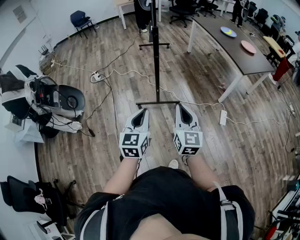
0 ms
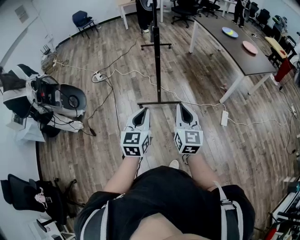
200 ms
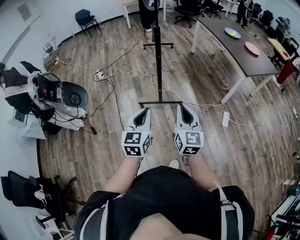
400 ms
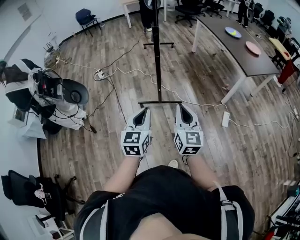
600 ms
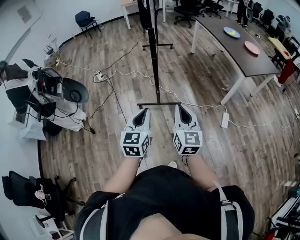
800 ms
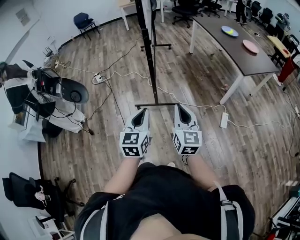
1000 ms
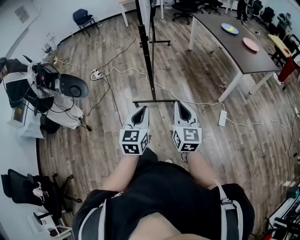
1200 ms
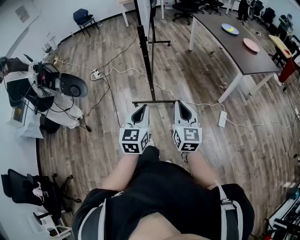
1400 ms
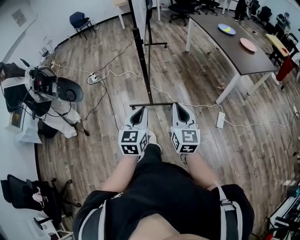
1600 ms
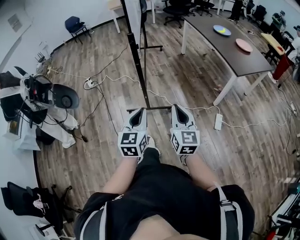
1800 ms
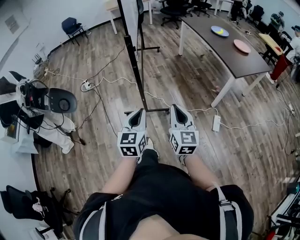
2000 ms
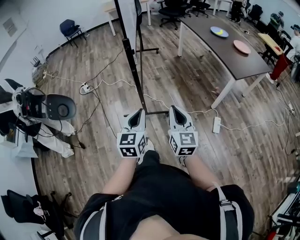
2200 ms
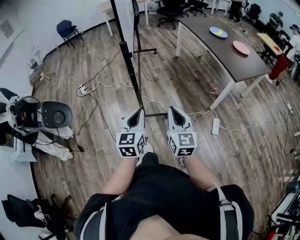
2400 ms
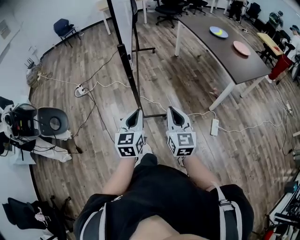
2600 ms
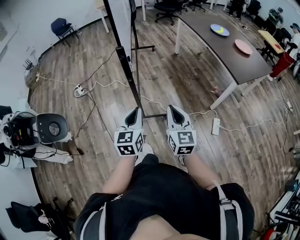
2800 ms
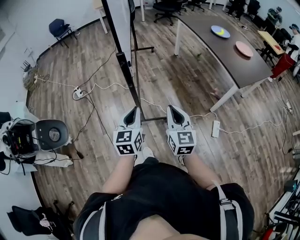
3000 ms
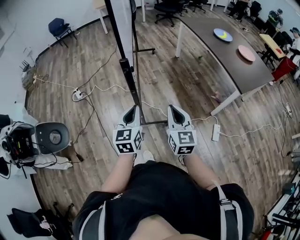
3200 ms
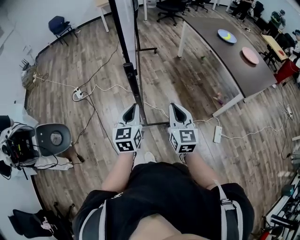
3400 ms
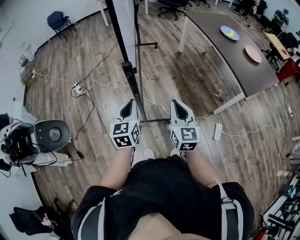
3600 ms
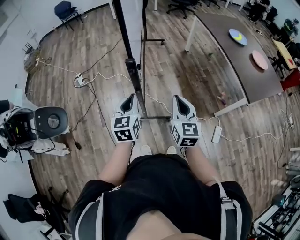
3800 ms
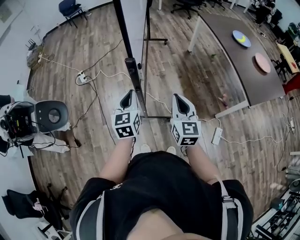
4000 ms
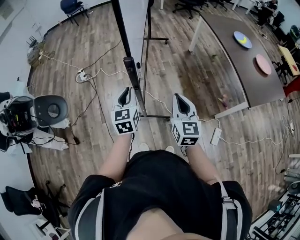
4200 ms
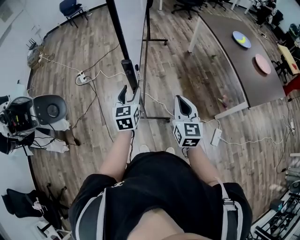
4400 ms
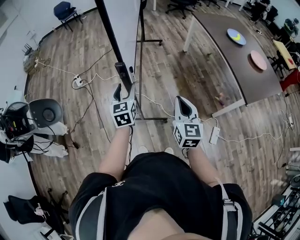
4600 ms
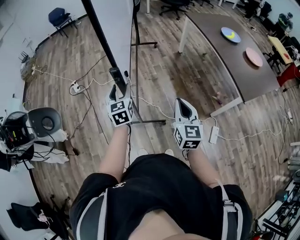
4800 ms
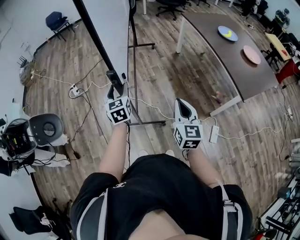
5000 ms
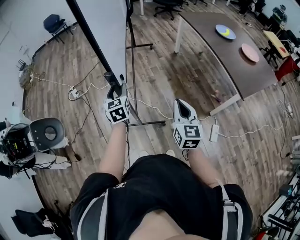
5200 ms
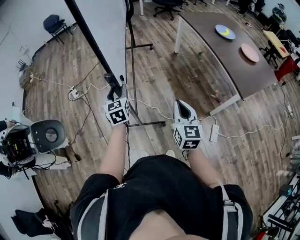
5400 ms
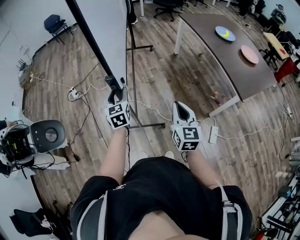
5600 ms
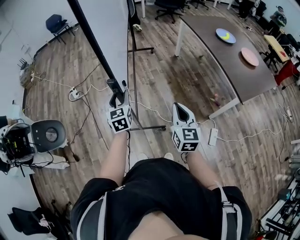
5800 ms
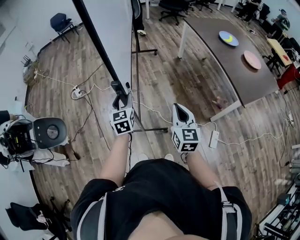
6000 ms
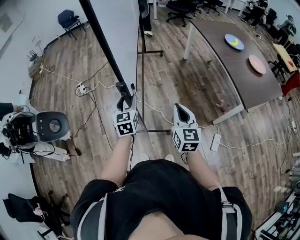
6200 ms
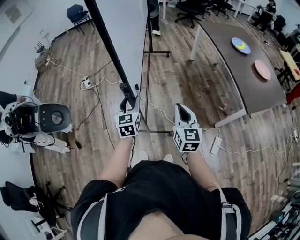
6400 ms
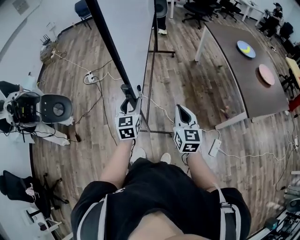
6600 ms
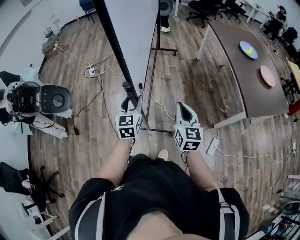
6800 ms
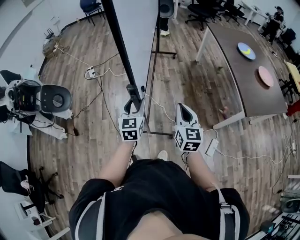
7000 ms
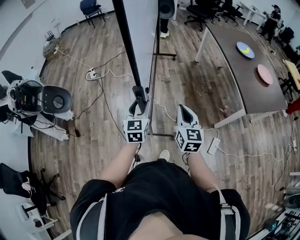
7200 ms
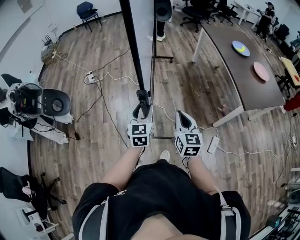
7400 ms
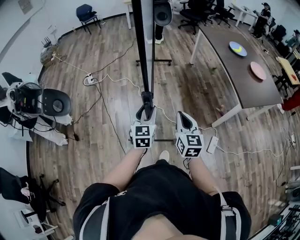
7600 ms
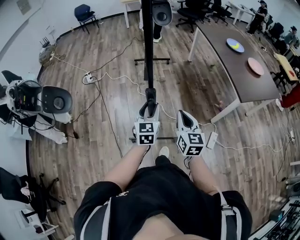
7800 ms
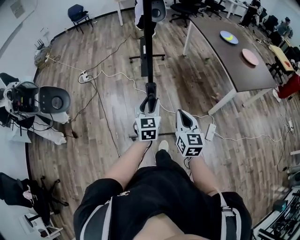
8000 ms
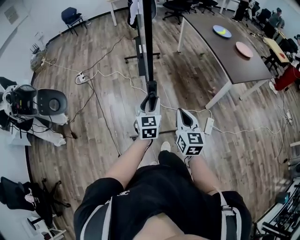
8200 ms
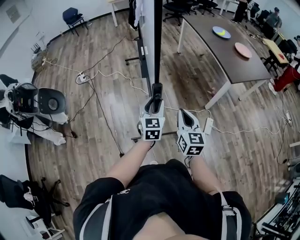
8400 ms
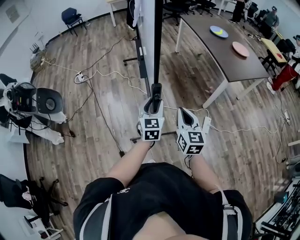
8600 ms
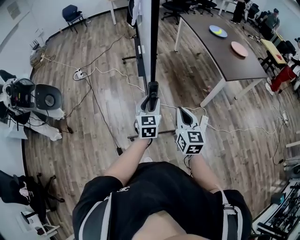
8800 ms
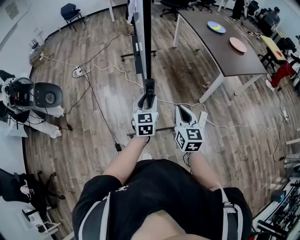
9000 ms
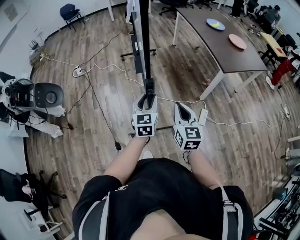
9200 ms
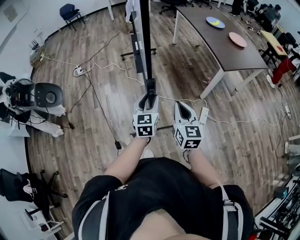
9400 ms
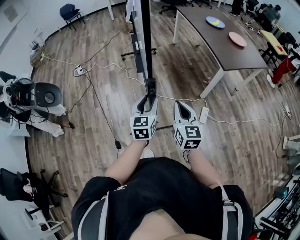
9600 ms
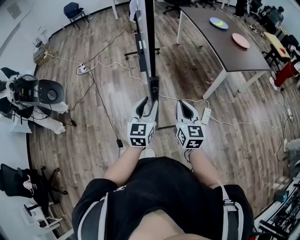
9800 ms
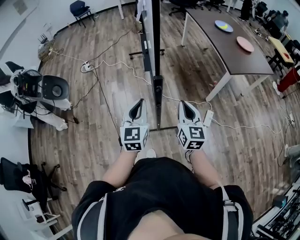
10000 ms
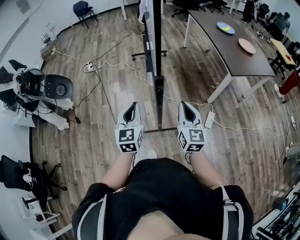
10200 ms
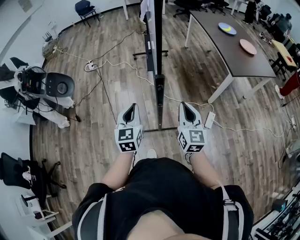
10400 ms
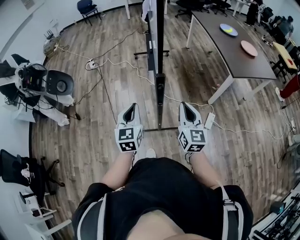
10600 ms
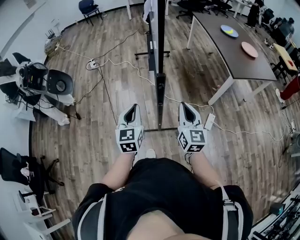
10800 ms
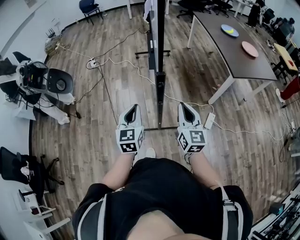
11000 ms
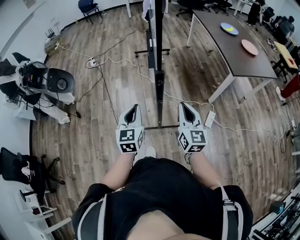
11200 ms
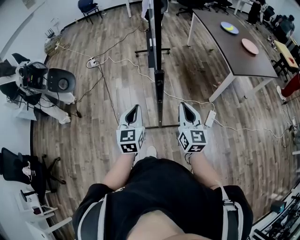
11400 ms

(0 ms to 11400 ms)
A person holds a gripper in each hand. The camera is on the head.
0 ms - 1400 ms: The grippers both shift to the right by roughly 10 cm.
1400 ms - 2800 ms: Both grippers move forward, approximately 20 cm.
2800 ms - 4200 ms: Both grippers travel together forward, roughly 20 cm.
4200 ms - 5600 ms: The left gripper is displaced forward by roughly 10 cm, and opens its fingers, while the right gripper heads to the right, covering approximately 5 cm.
5600 ms - 7200 ms: The left gripper heads backward, covering about 20 cm. Meanwhile the right gripper shifts approximately 10 cm backward.
7200 ms - 8600 ms: The left gripper shifts some 20 cm backward and to the right. Meanwhile the right gripper heads backward, covering about 20 cm.
8600 ms - 10000 ms: The right gripper shifts by roughly 5 cm. The left gripper goes about 15 cm backward and upward, and closes its fingers.
10000 ms - 11400 ms: The left gripper ends up roughly 5 cm from where it was.

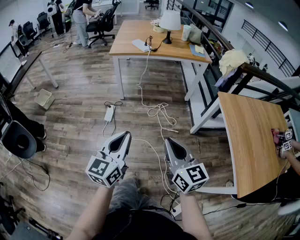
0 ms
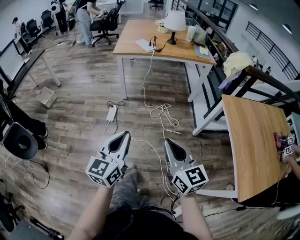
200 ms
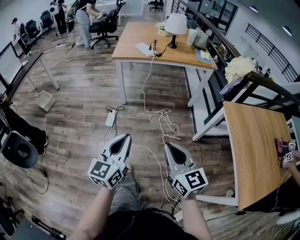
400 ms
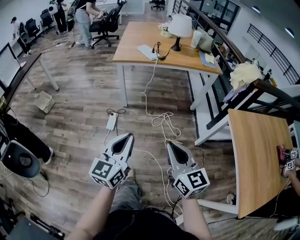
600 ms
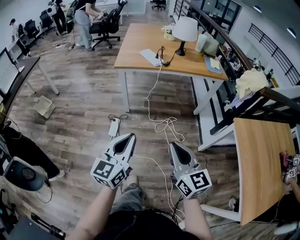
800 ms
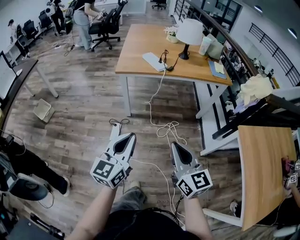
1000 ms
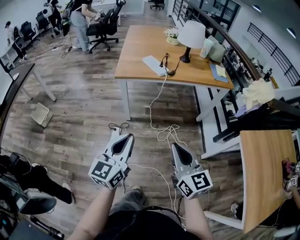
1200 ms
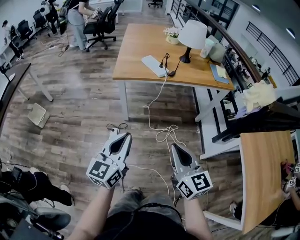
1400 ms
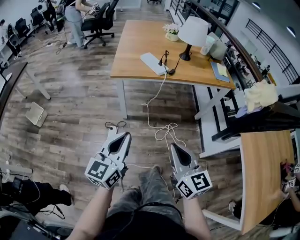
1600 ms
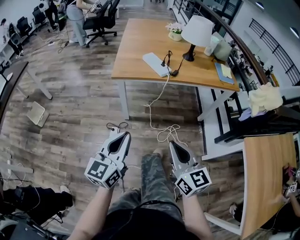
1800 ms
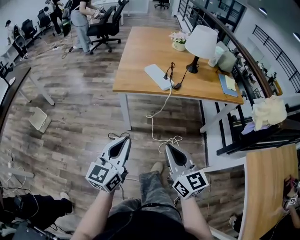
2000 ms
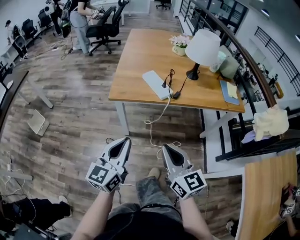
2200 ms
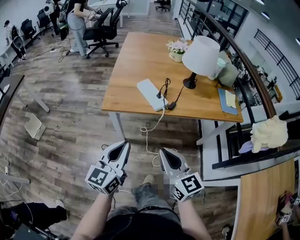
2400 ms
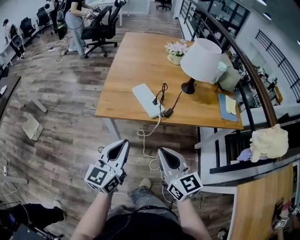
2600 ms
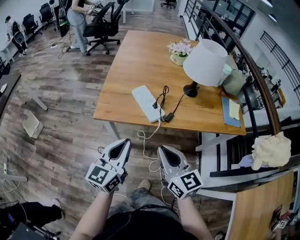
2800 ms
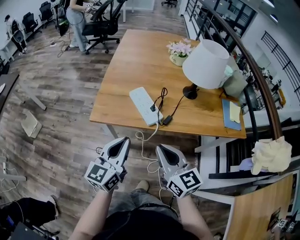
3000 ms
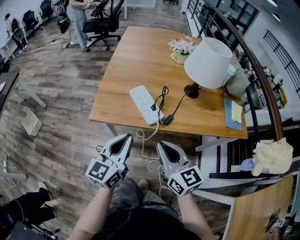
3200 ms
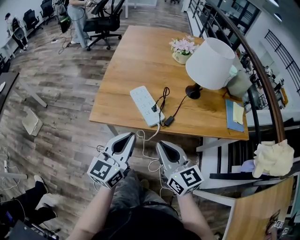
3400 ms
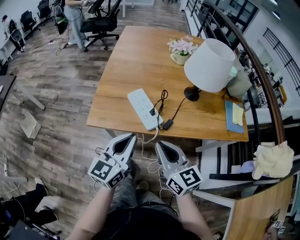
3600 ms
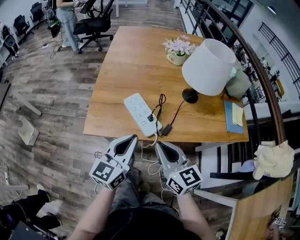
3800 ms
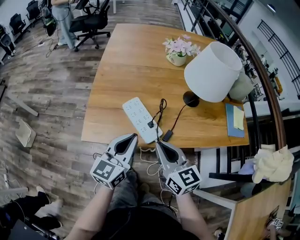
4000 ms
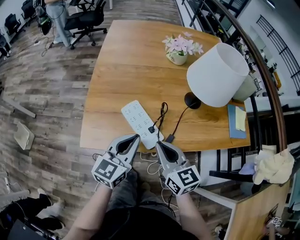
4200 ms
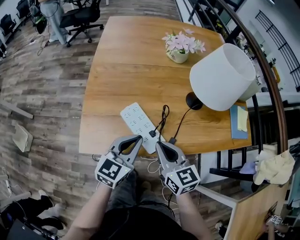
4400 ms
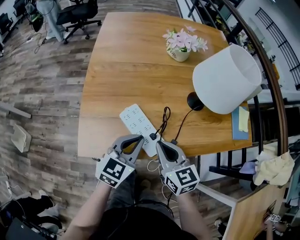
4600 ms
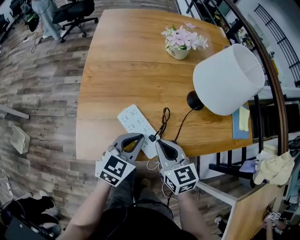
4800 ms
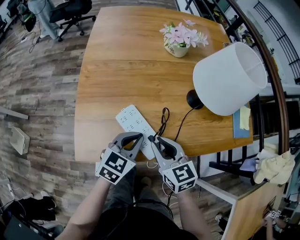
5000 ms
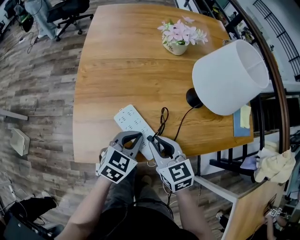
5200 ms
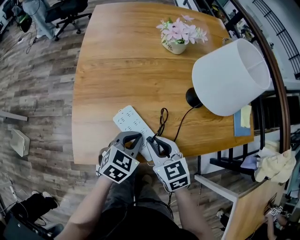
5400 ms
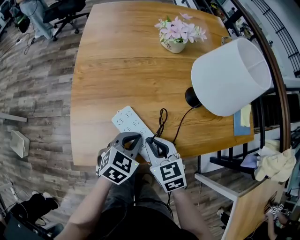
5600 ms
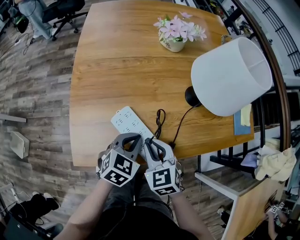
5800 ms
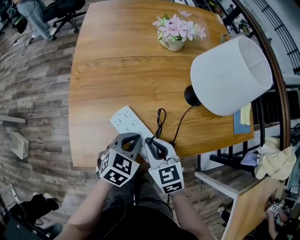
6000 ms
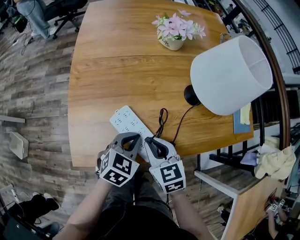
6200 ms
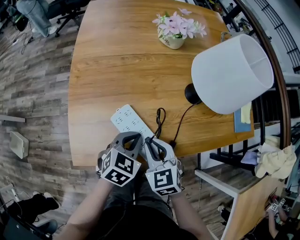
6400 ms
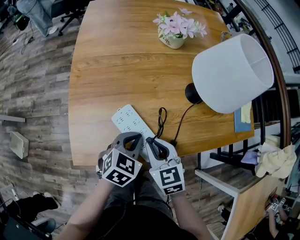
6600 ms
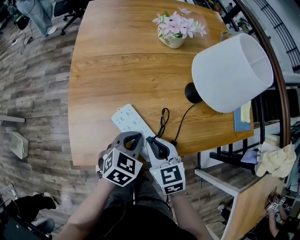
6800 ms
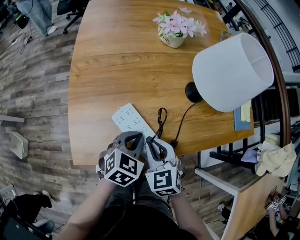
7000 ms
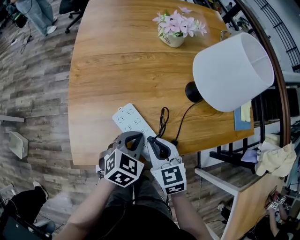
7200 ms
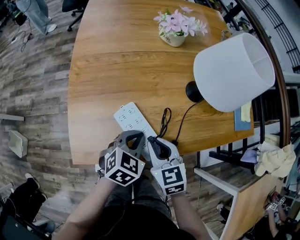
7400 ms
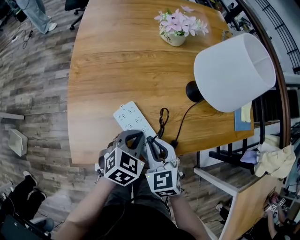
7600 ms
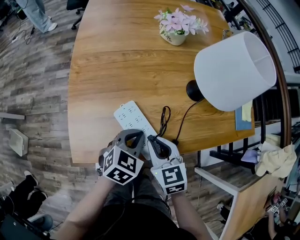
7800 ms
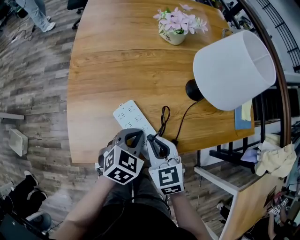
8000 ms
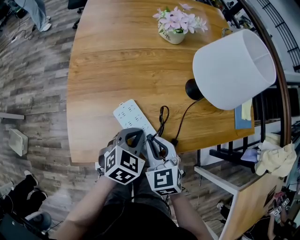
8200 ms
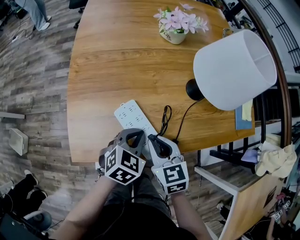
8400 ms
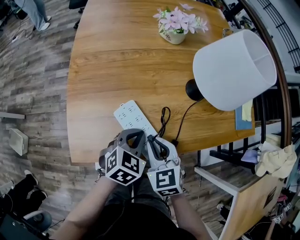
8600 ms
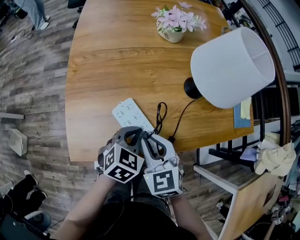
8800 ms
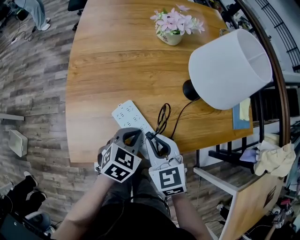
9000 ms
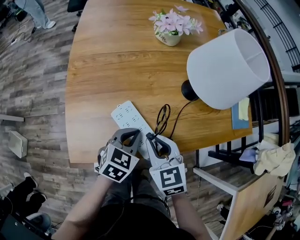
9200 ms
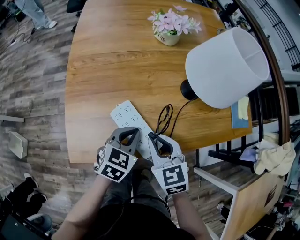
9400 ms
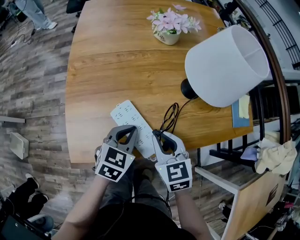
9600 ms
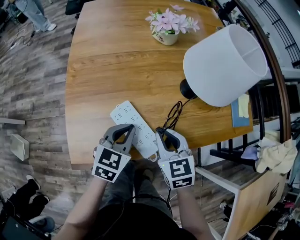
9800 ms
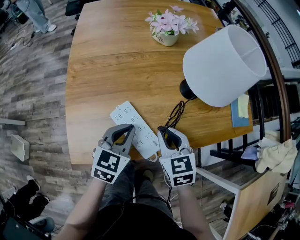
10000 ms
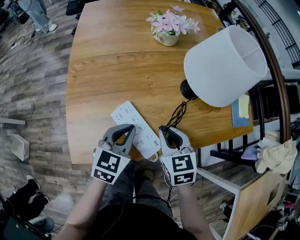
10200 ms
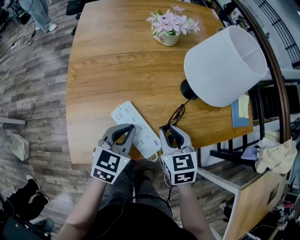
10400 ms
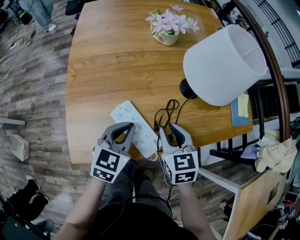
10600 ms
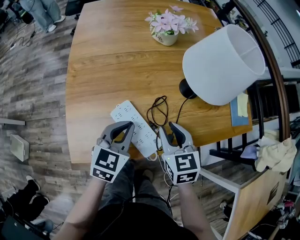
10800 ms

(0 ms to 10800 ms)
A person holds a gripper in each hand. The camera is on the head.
0 ms - 1600 ms: Both grippers move forward, about 35 cm.
1600 ms - 3000 ms: Both grippers travel together forward, approximately 35 cm.
3000 ms - 4600 ms: The two grippers go approximately 20 cm forward and downward. The left gripper swivels roughly 30 degrees.
4600 ms - 6200 ms: The right gripper changes place by roughly 5 cm. Meanwhile the left gripper travels downward by about 5 cm, and swivels approximately 20 degrees.
6200 ms - 9200 ms: The grippers stay close to where they were, moving slightly.
9200 ms - 10800 ms: The left gripper shifts by some 5 cm. Meanwhile the right gripper is displaced to the right by roughly 5 cm.

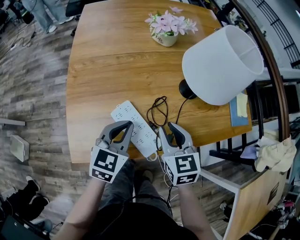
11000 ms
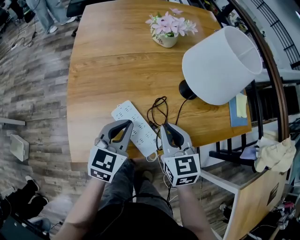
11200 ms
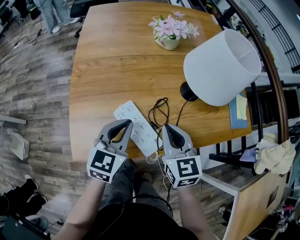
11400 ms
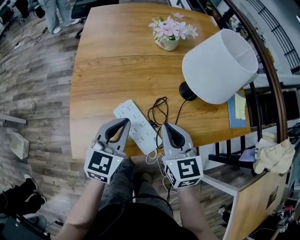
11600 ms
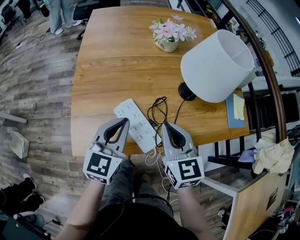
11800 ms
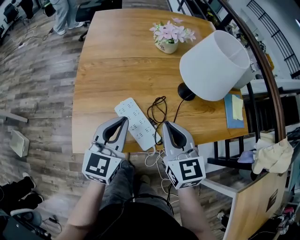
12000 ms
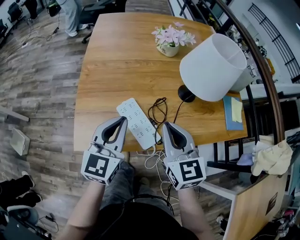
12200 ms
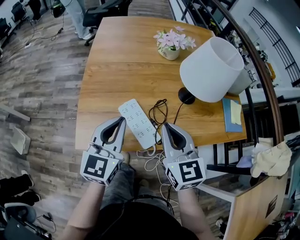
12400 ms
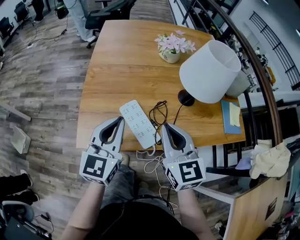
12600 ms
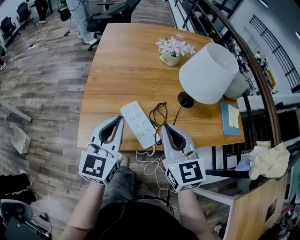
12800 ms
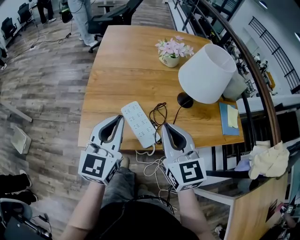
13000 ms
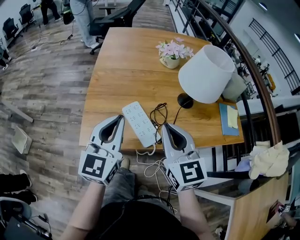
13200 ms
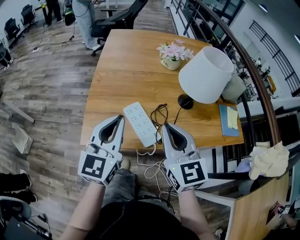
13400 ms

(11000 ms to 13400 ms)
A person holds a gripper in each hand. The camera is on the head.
11000 ms - 12200 ms: The grippers both shift upward by roughly 10 cm. The right gripper closes its fingers; the left gripper swivels approximately 20 degrees.
12200 ms - 13400 ms: Both grippers move upward, about 5 cm.
